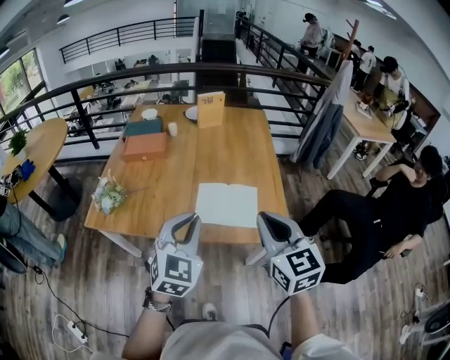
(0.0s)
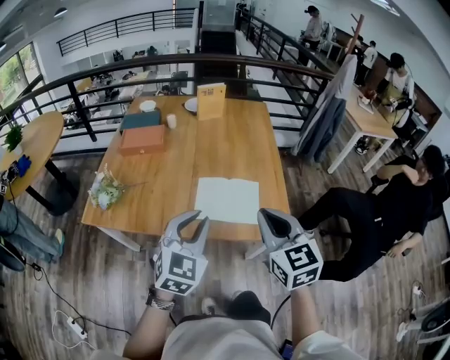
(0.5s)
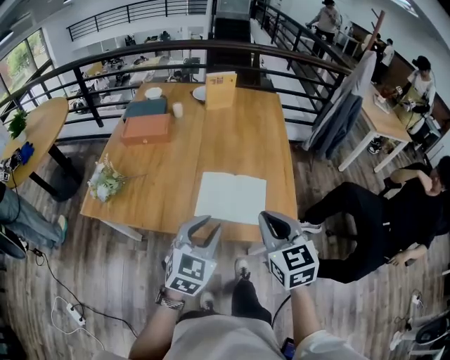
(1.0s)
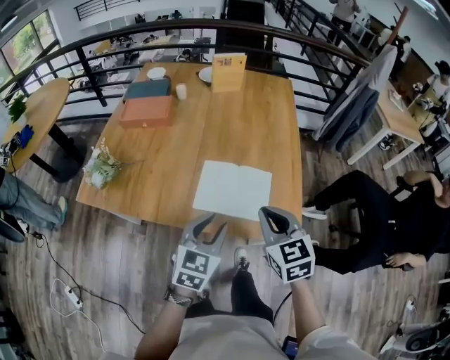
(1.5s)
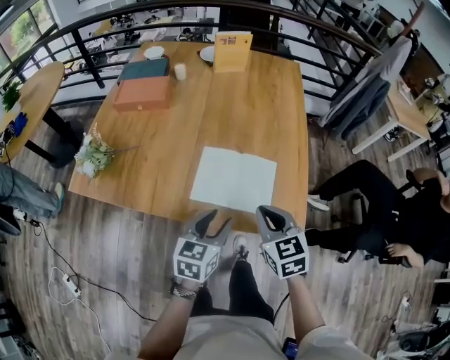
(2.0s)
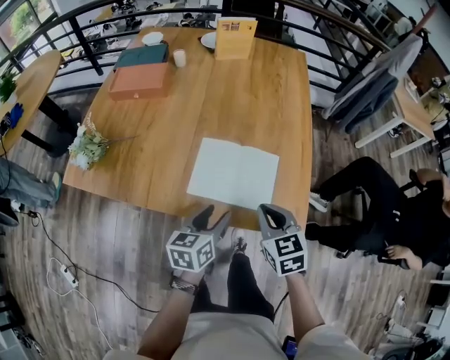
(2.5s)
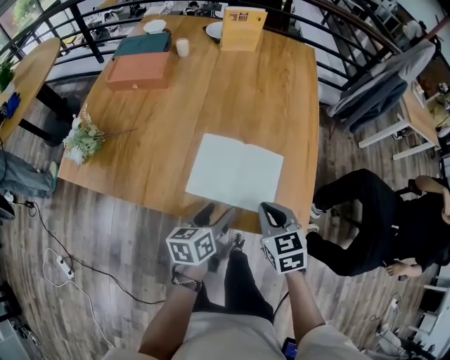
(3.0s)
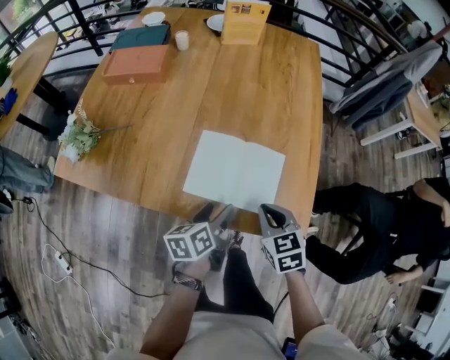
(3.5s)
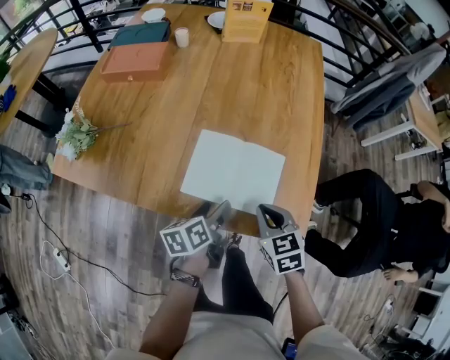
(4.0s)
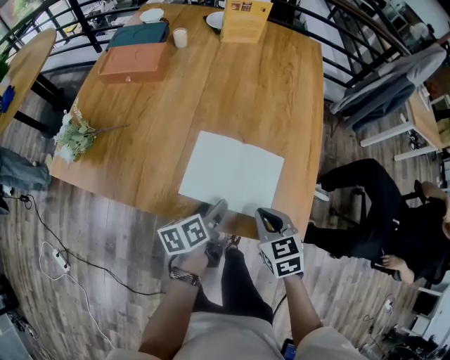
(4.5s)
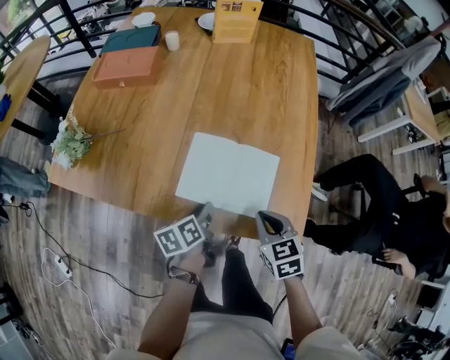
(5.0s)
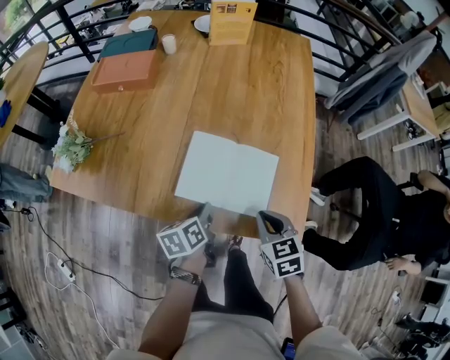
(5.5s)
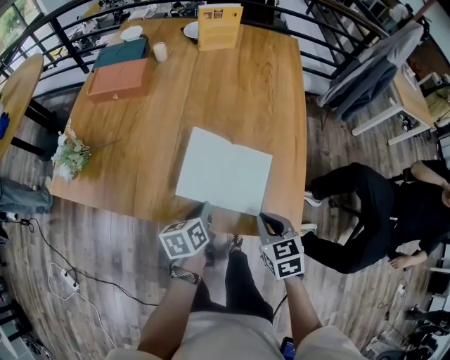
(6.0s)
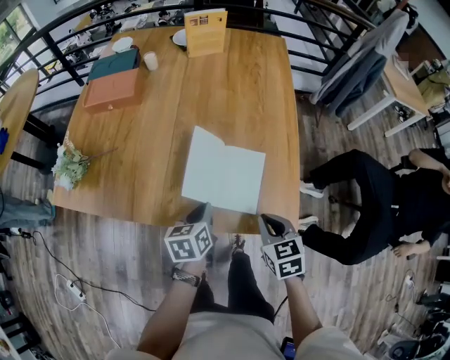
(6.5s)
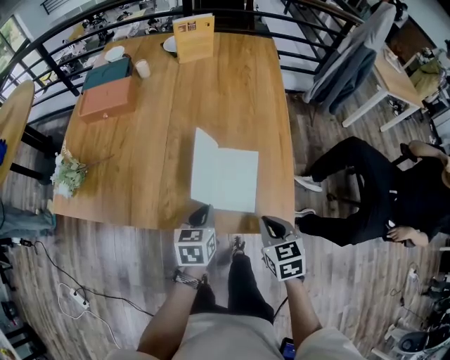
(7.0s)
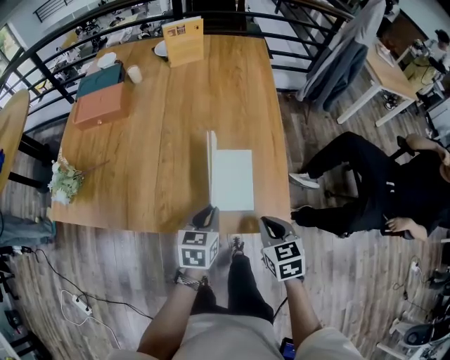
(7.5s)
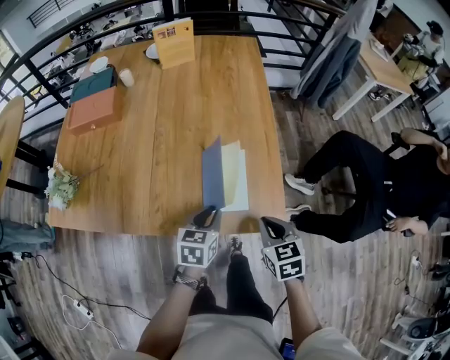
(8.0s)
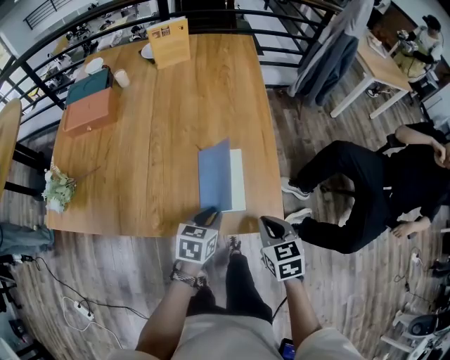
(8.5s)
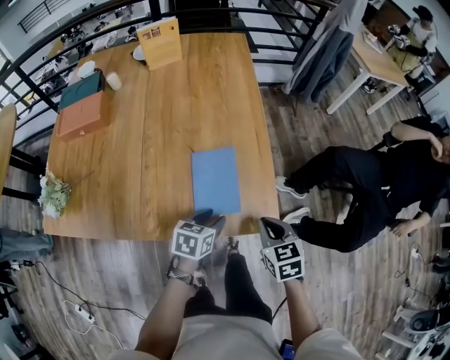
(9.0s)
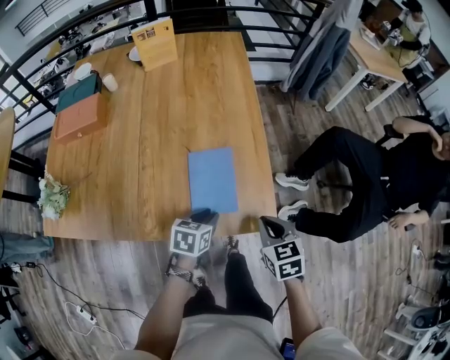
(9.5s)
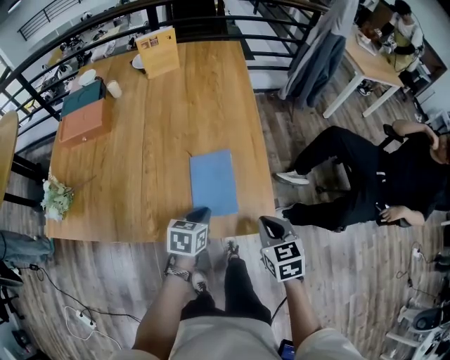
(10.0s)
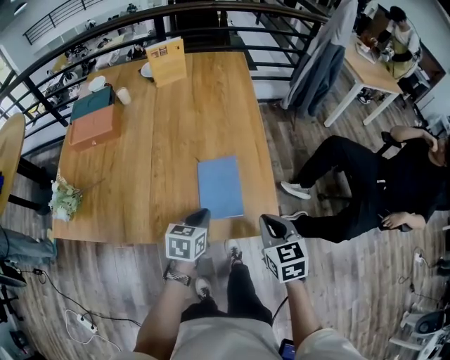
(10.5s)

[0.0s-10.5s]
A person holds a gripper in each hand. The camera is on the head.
0.0s to 2.0s: The left gripper is displaced downward by about 20 cm, rolls counterclockwise, seen from behind, by about 40 degrees, and opens, while the right gripper is displaced downward and forward by approximately 25 cm, and turns by some 20 degrees.
2.0s to 4.0s: The left gripper moves downward and forward, approximately 15 cm, twists roughly 40 degrees counterclockwise, seen from behind, and opens up. The right gripper travels downward by approximately 10 cm.
4.0s to 6.5s: The right gripper shifts by some 5 cm. Meanwhile the left gripper changes its angle by about 20 degrees, and closes up.
6.5s to 8.5s: The left gripper travels to the right by approximately 10 cm, and turns by some 30 degrees. Meanwhile the right gripper goes roughly 5 cm to the right.
8.5s to 10.5s: The right gripper heads upward, covering about 5 cm.

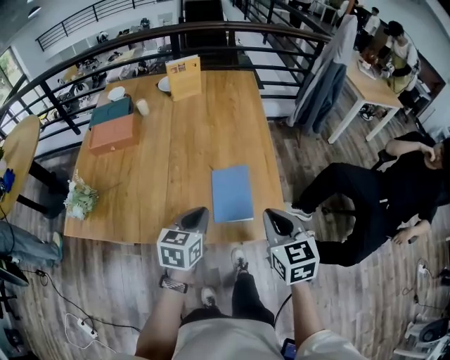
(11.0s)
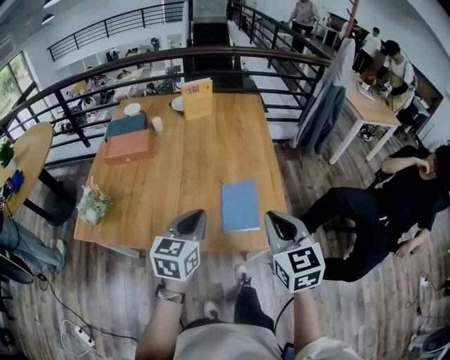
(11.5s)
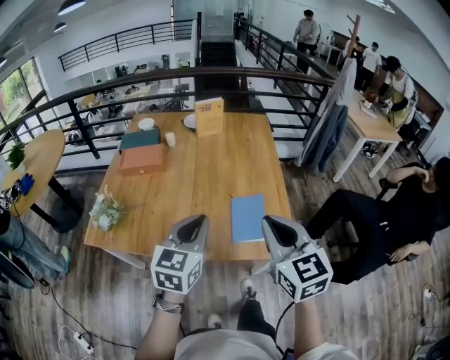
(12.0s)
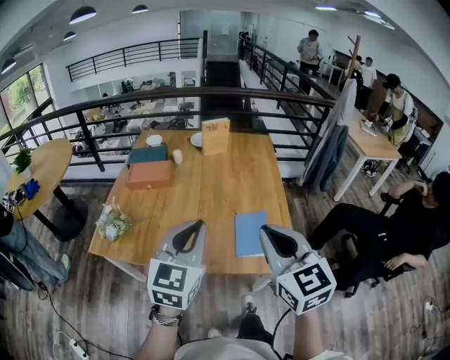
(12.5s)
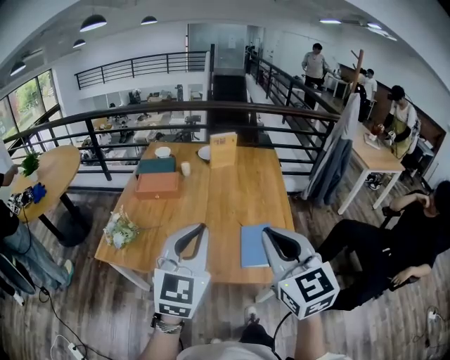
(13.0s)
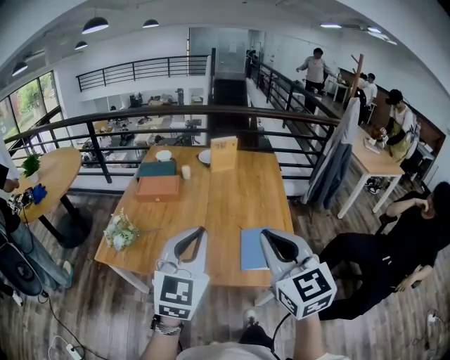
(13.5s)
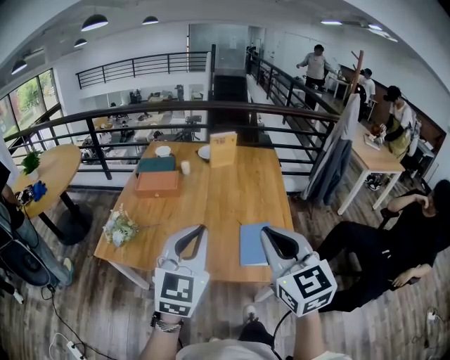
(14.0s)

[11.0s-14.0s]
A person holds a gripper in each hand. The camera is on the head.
11.0s to 12.5s: The left gripper is displaced upward by some 25 cm, and turns by some 30 degrees. Meanwhile the right gripper travels upward and to the left by some 25 cm, and changes its angle by about 20 degrees.
12.5s to 14.0s: The grippers make only small movements.

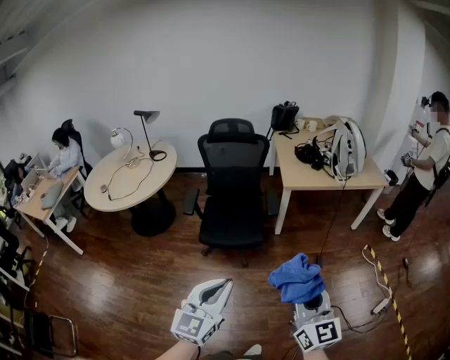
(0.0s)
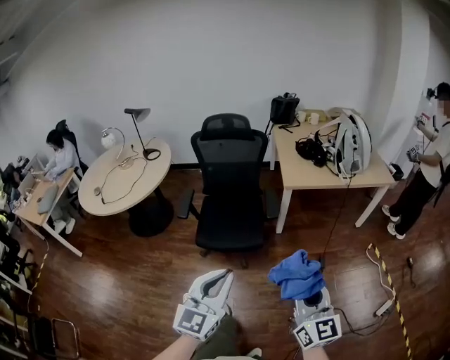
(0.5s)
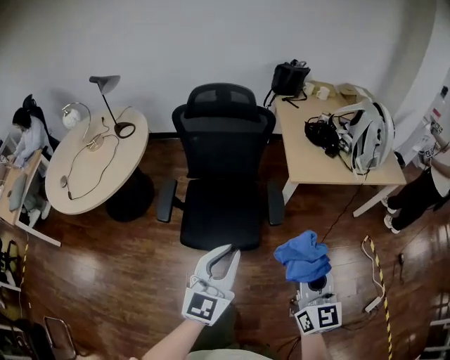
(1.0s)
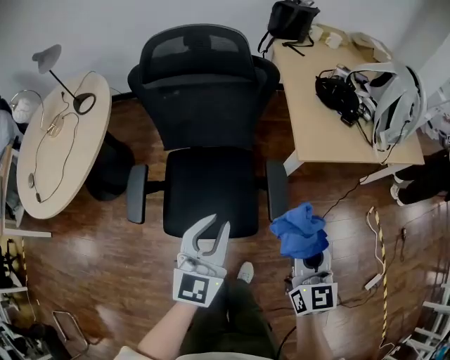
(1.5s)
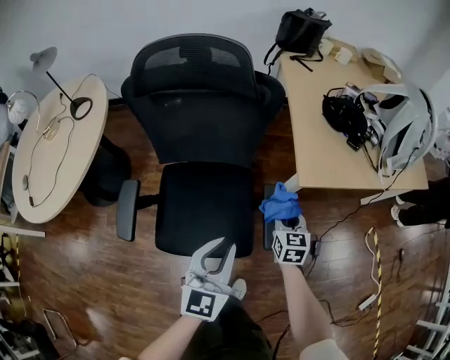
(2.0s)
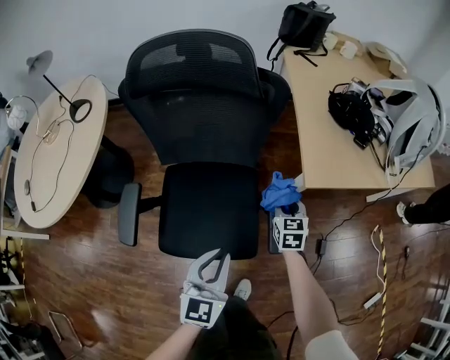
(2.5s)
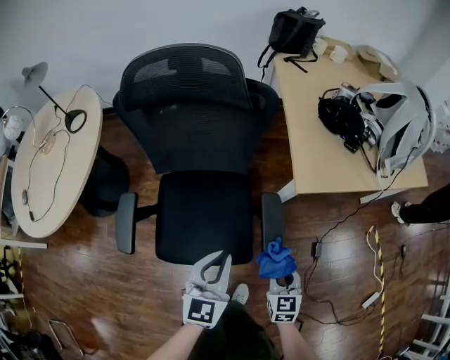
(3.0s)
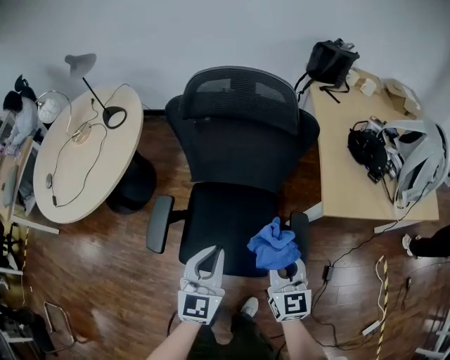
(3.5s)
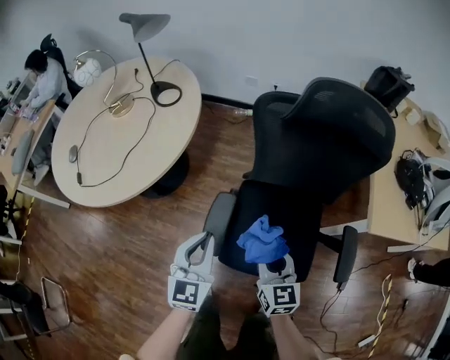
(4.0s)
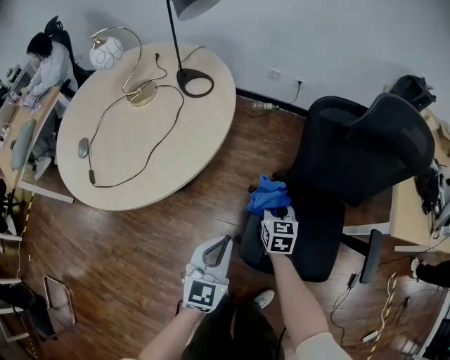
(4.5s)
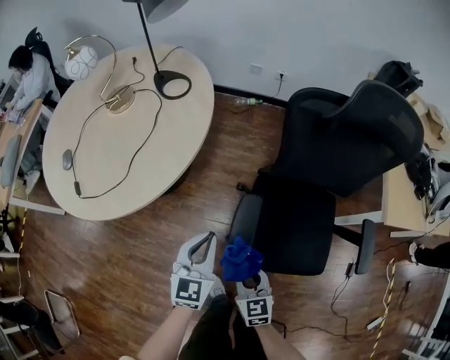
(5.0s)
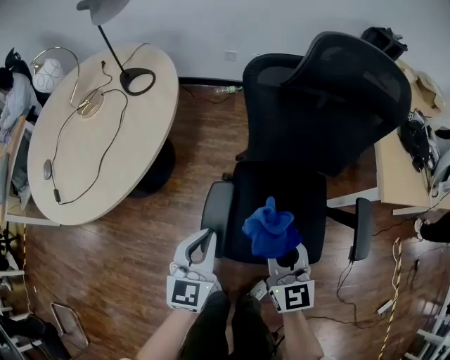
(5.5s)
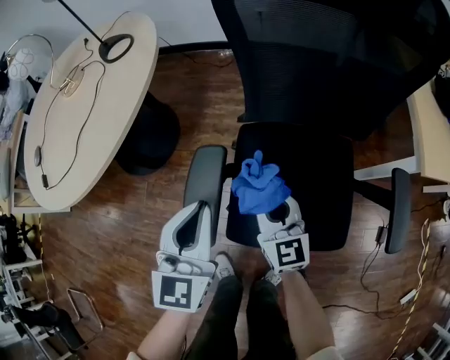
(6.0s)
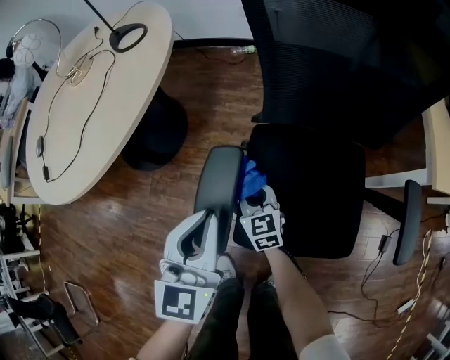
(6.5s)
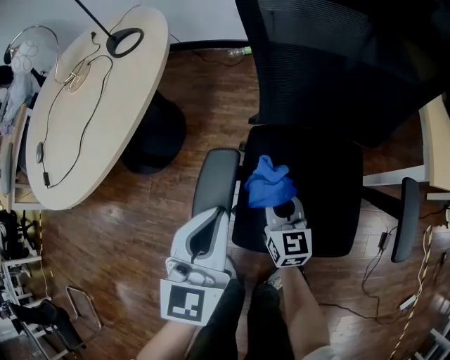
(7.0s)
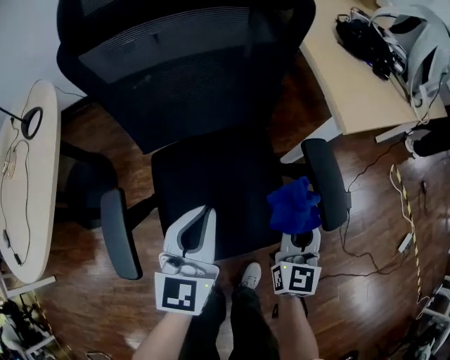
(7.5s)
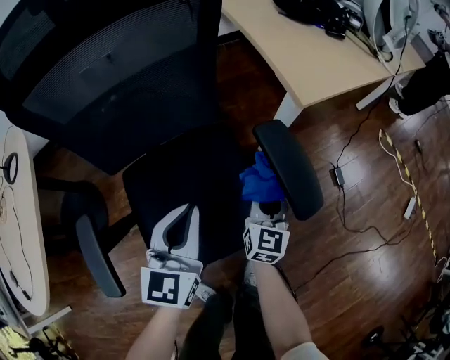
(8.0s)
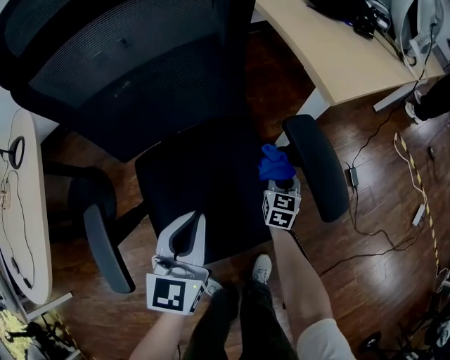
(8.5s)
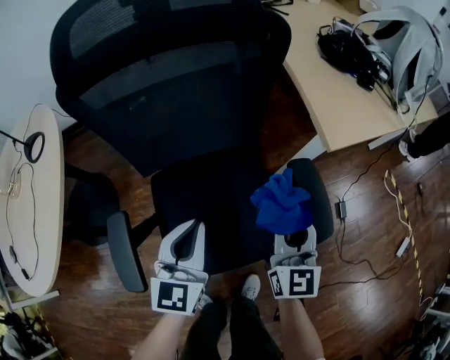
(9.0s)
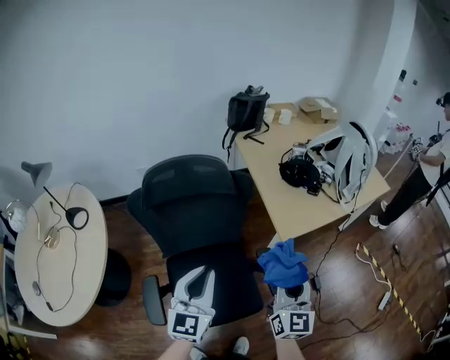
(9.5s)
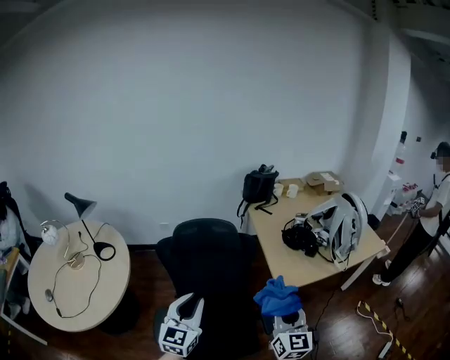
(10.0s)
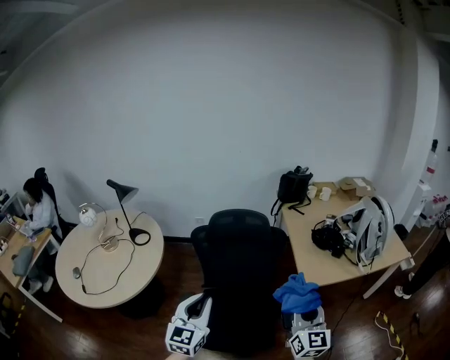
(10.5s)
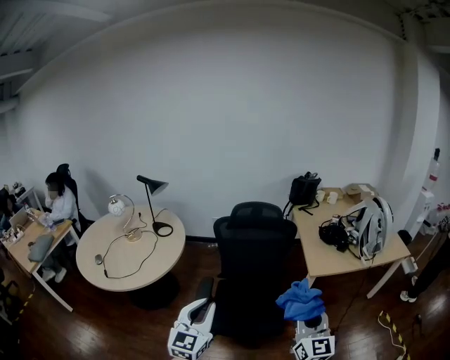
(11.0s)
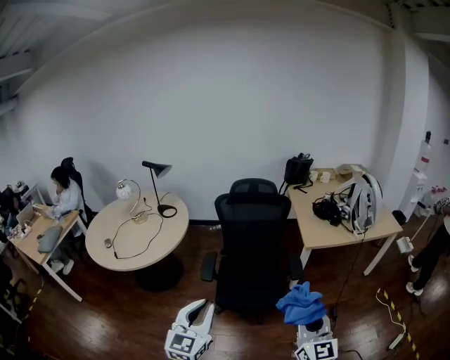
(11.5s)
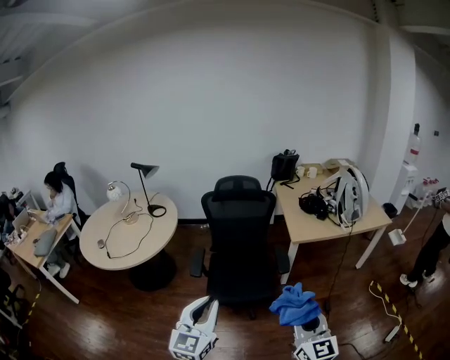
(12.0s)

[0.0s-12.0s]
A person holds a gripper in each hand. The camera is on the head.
0.0s to 2.0s: The pair of grippers is taken forward, about 90 cm. The two grippers go roughly 70 cm downward. The right gripper points its fingers about 40 degrees further downward; the left gripper closes its fingers.
2.0s to 4.0s: Both grippers move to the left, about 35 cm. The right gripper rotates some 30 degrees.
4.0s to 6.0s: The right gripper moves up and down over roughly 25 cm, changing direction 2 times, while the left gripper moves downward, about 20 cm.
6.0s to 8.0s: The left gripper changes place by about 30 cm, and changes its angle by approximately 30 degrees; the right gripper swings up and down, approximately 20 cm each way, with 2 reversals, and swivels approximately 60 degrees.
8.0s to 10.0s: Both grippers move upward, approximately 60 cm. The right gripper swivels roughly 20 degrees.
10.0s to 12.0s: The two grippers travel together, backward, about 50 cm.

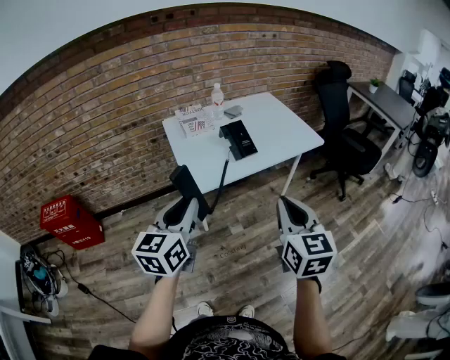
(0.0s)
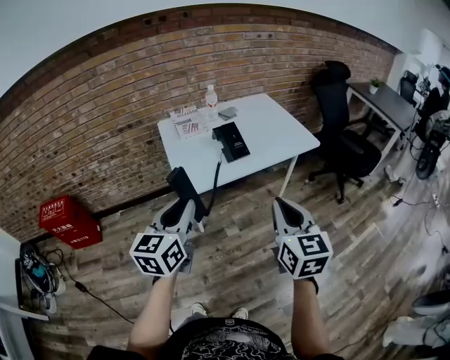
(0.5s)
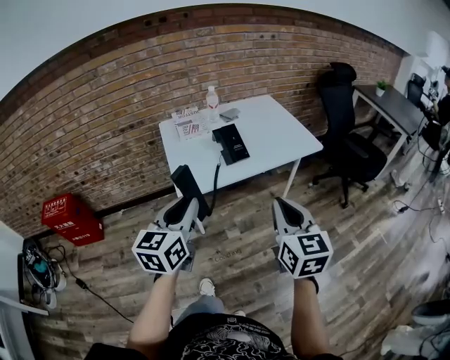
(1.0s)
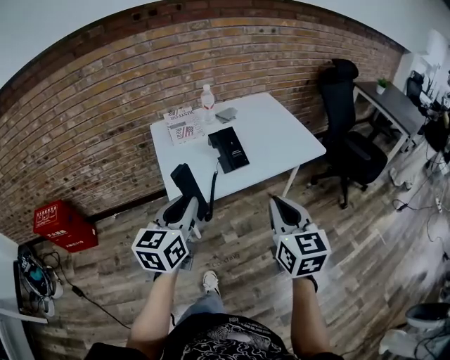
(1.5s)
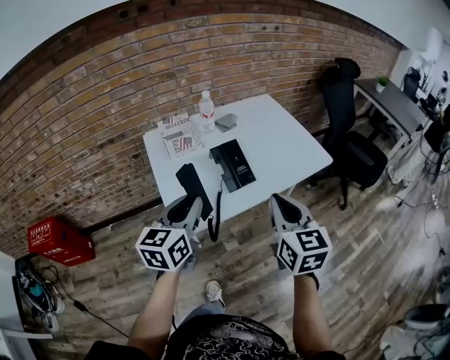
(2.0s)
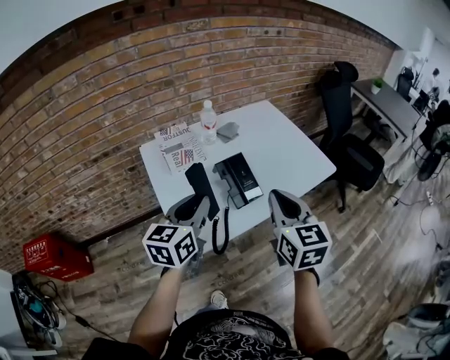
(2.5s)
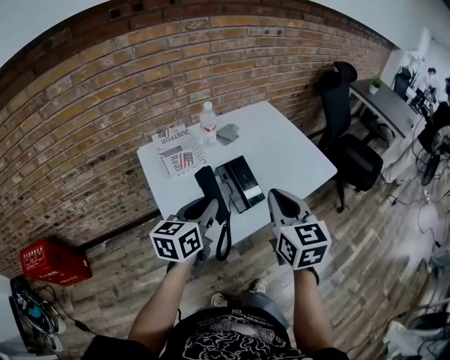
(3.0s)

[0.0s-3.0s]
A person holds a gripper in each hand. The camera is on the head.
0.0s to 1.5s: The right gripper heads forward, covering about 10 cm. Meanwhile the left gripper heads forward and to the right, covering roughly 15 cm.
1.5s to 3.0s: The right gripper heads forward and to the left, covering some 25 cm, while the left gripper moves forward, about 20 cm, and swivels approximately 20 degrees.
